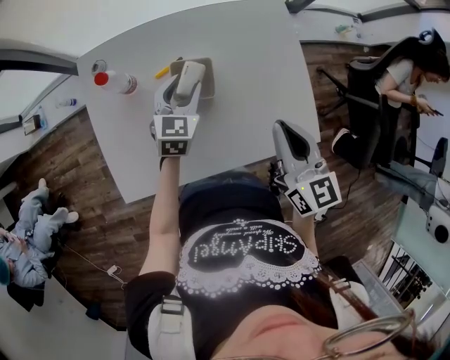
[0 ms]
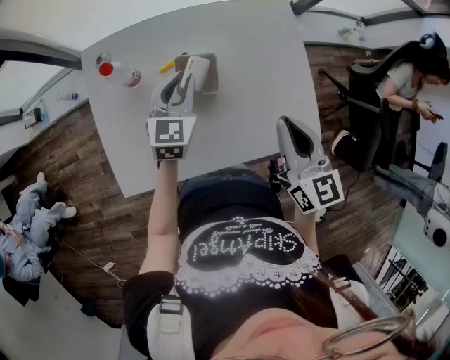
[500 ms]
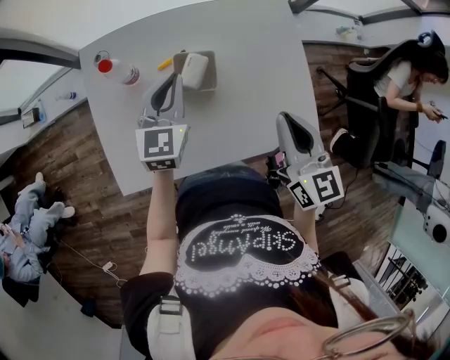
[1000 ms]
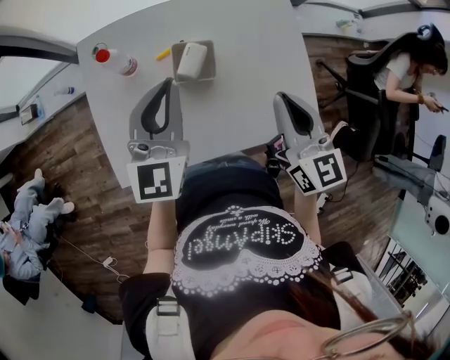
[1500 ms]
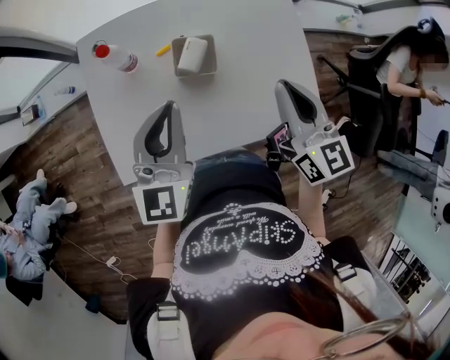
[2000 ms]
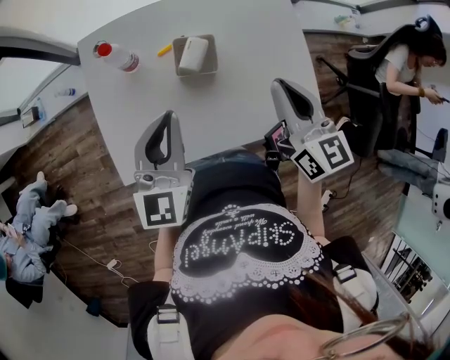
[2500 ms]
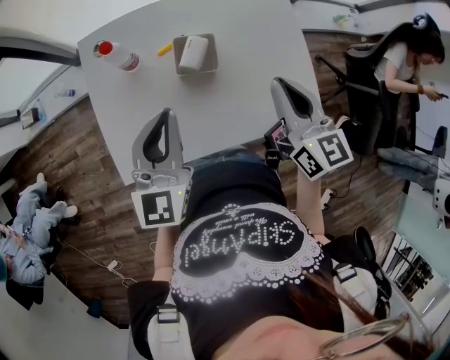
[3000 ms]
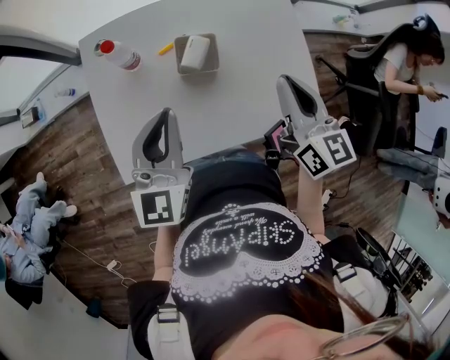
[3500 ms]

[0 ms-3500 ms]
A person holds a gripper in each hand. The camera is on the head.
0 ms to 2000 ms: The left gripper shifts about 20 cm upward and backward, turns by some 20 degrees, and closes up.
2000 ms to 3500 ms: There are only small adjustments of the grippers.

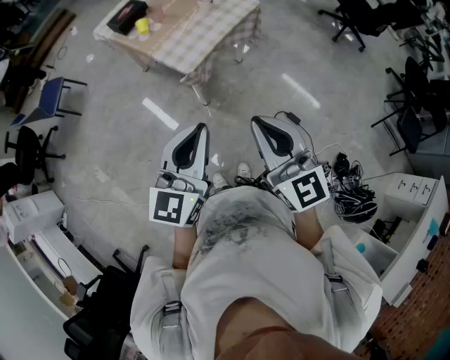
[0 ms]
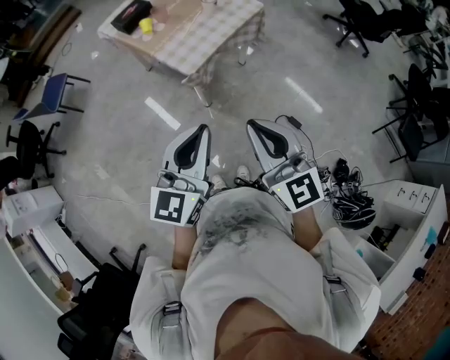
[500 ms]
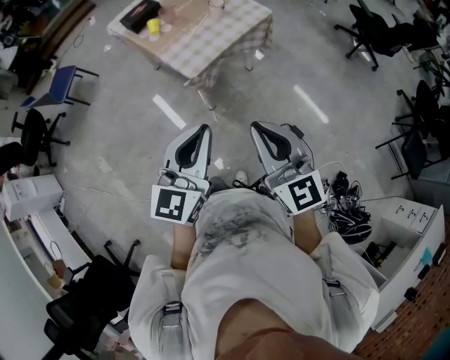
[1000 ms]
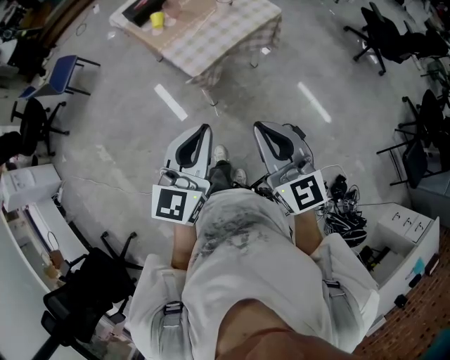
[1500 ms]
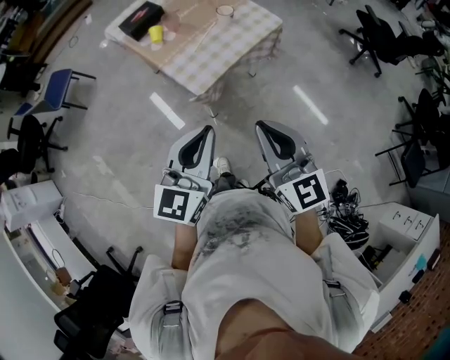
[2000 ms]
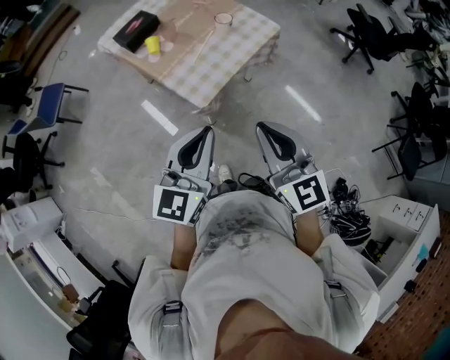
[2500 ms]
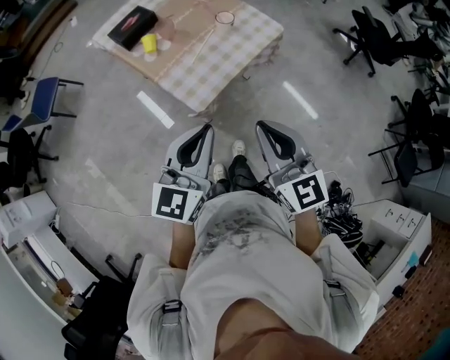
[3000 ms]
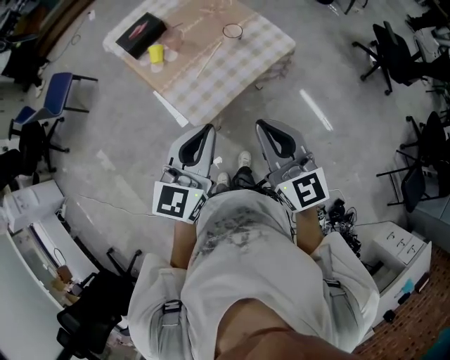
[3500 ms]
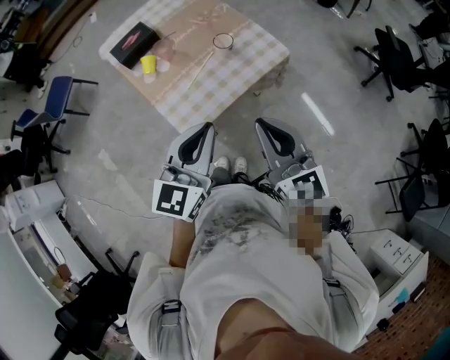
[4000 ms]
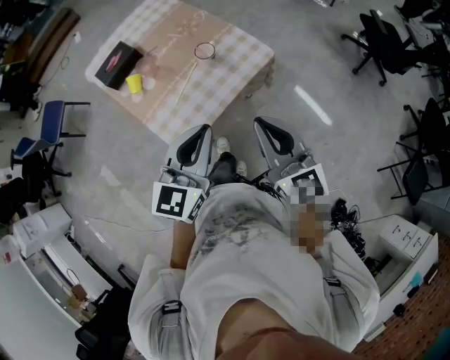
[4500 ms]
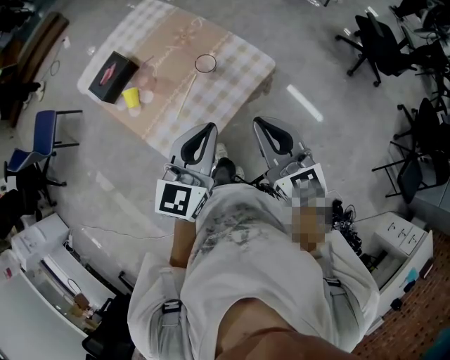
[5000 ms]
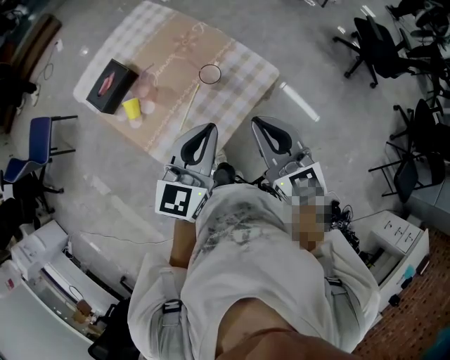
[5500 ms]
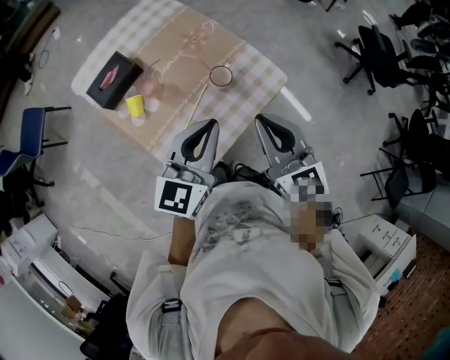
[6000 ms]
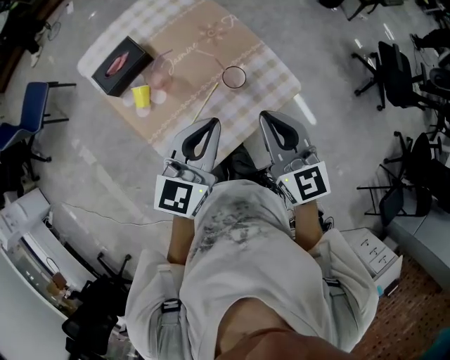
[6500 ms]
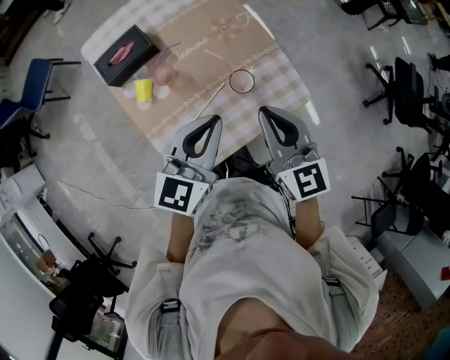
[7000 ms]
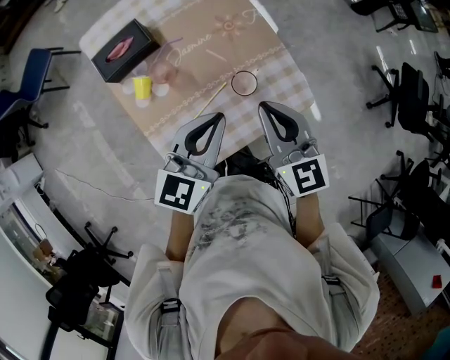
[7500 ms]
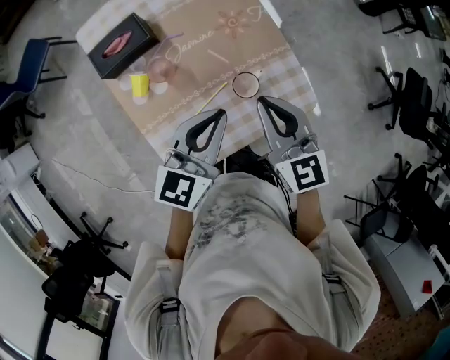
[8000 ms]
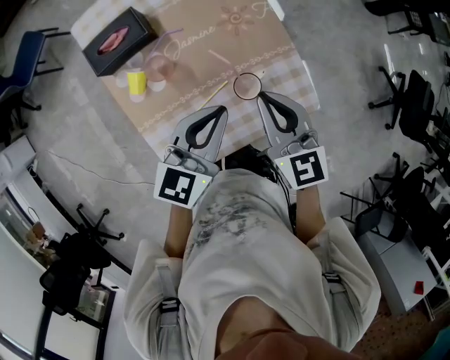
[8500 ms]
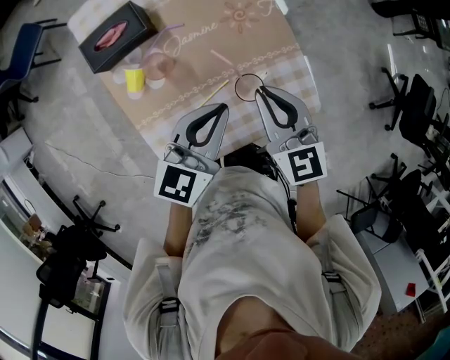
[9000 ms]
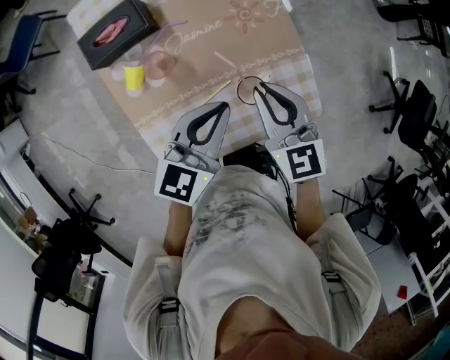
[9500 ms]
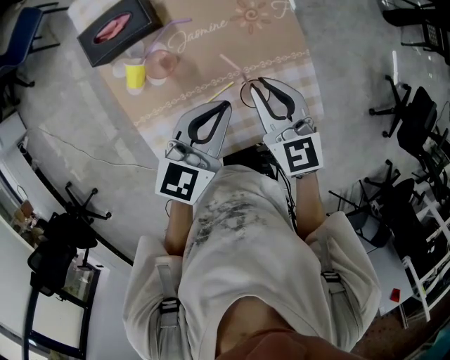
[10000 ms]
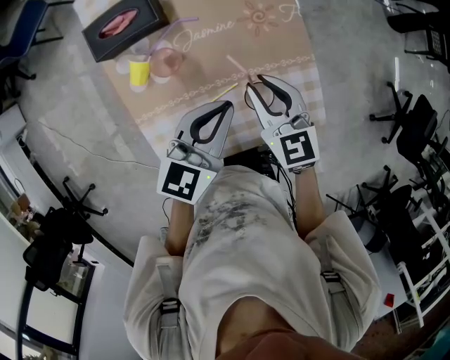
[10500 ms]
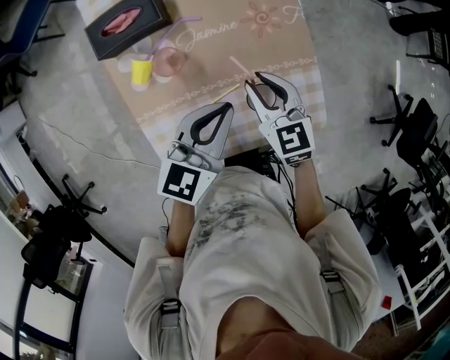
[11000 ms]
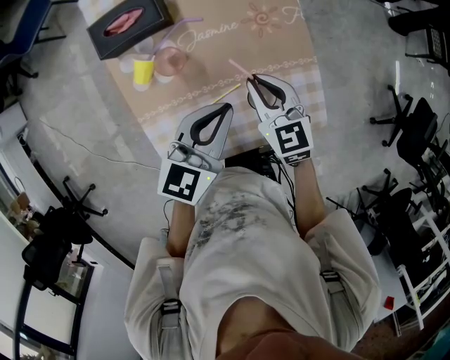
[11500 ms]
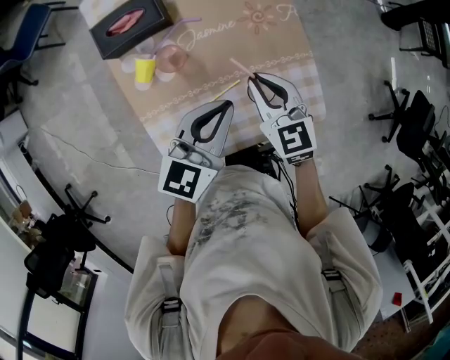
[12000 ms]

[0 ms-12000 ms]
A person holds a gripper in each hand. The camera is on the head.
0 ms to 2000 ms: Both grippers travel together forward, roughly 15 cm.
2000 ms to 4000 ms: Both grippers move forward, approximately 25 cm.
4000 ms to 6000 ms: Both grippers travel together forward, approximately 20 cm.
6000 ms to 8000 ms: Both grippers move forward and downward, approximately 15 cm.
8000 ms to 10000 ms: Both grippers travel together downward and forward, about 10 cm.
10000 ms to 12000 ms: The grippers stay close to where they were, moving slightly.

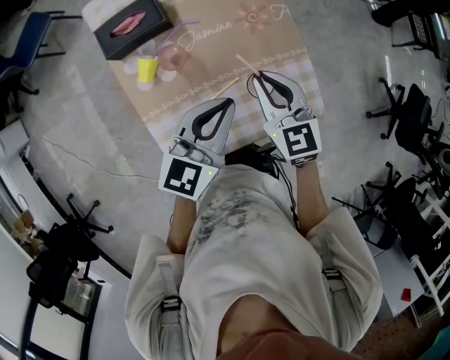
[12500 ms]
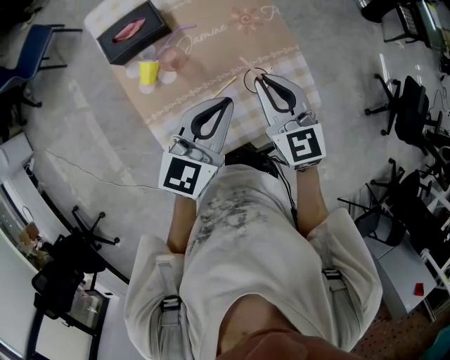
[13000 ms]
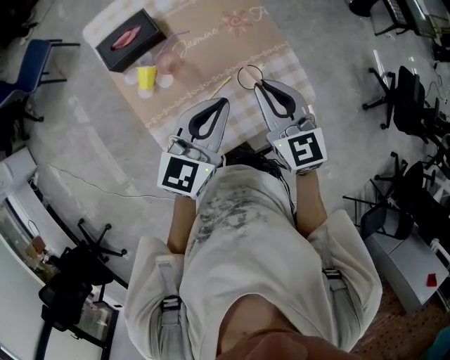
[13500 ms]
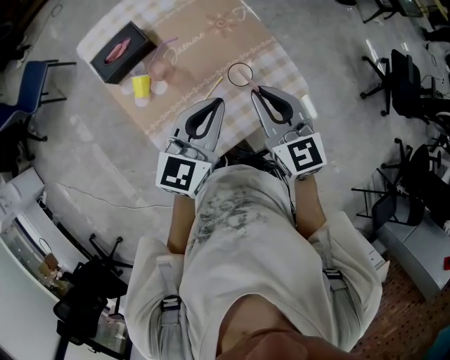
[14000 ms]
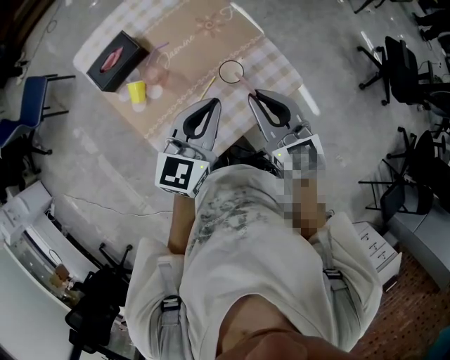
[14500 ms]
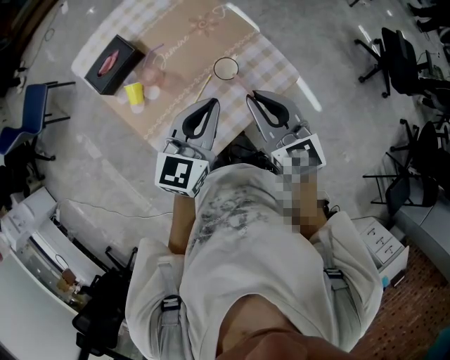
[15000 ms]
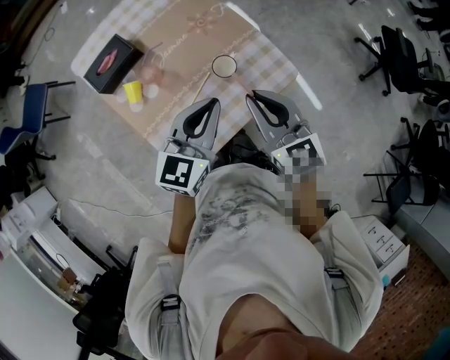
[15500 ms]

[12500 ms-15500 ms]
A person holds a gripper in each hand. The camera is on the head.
12500 ms to 14000 ms: The right gripper heads backward and upward, covering some 15 cm, while the left gripper is displaced backward by approximately 5 cm.
14000 ms to 15500 ms: The right gripper heads backward, covering some 5 cm.

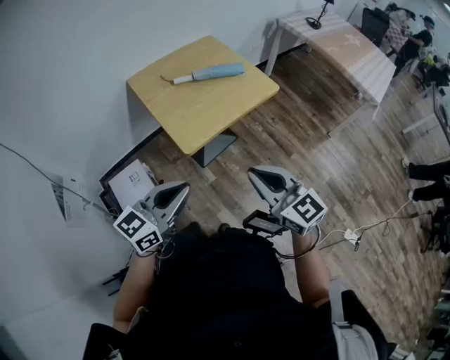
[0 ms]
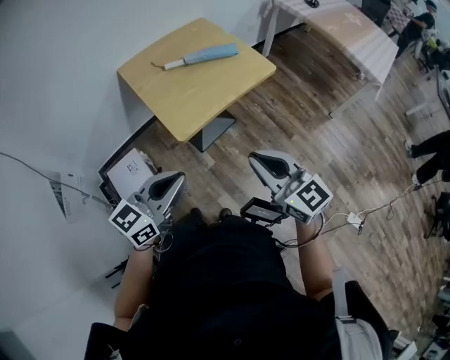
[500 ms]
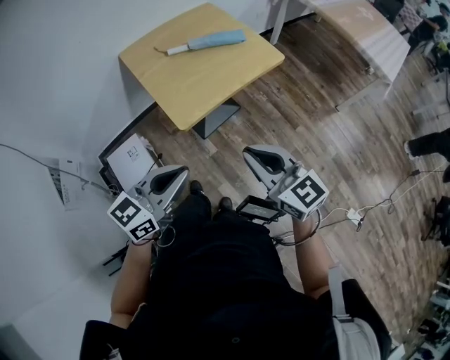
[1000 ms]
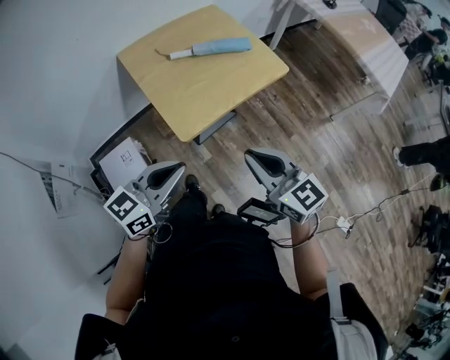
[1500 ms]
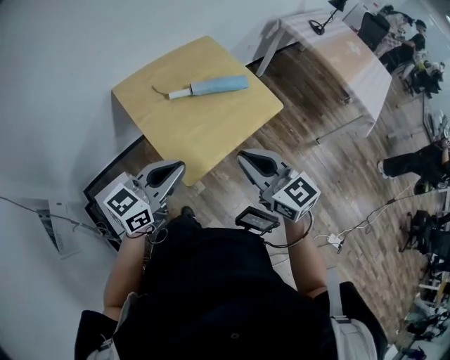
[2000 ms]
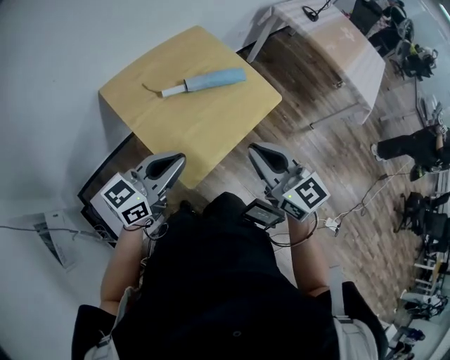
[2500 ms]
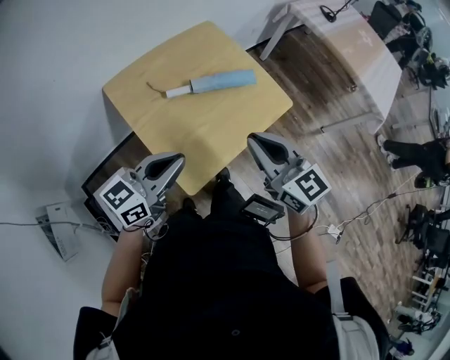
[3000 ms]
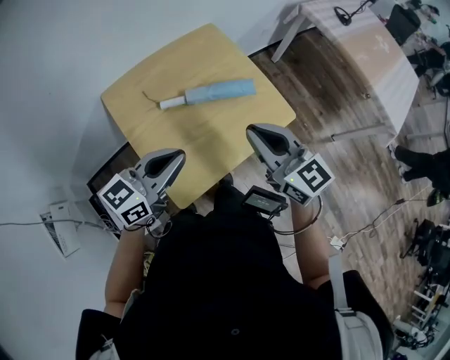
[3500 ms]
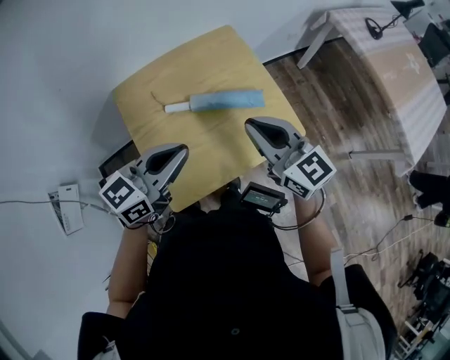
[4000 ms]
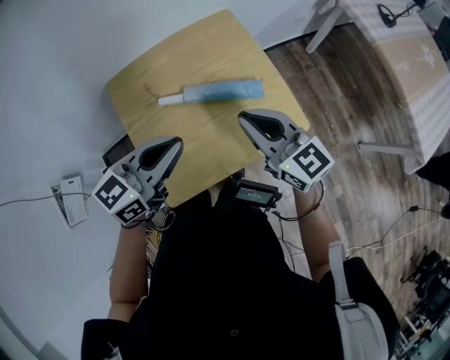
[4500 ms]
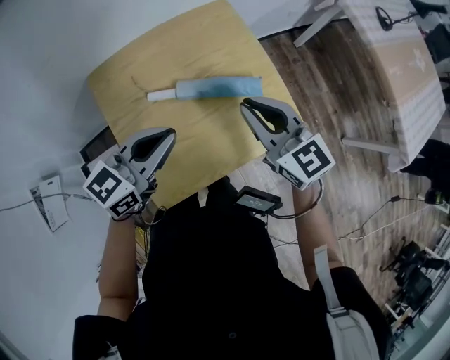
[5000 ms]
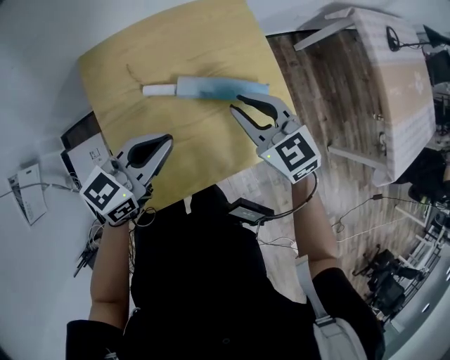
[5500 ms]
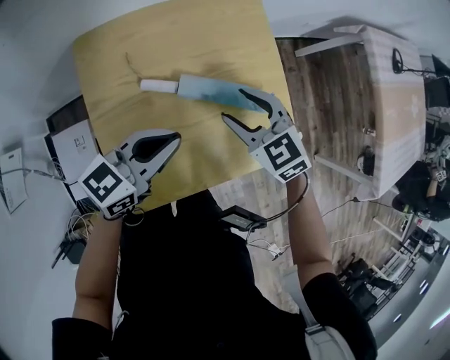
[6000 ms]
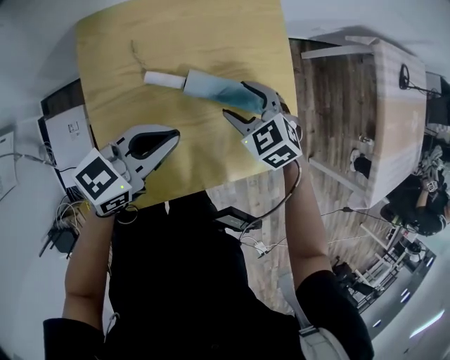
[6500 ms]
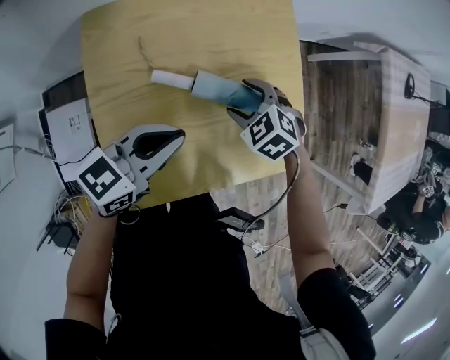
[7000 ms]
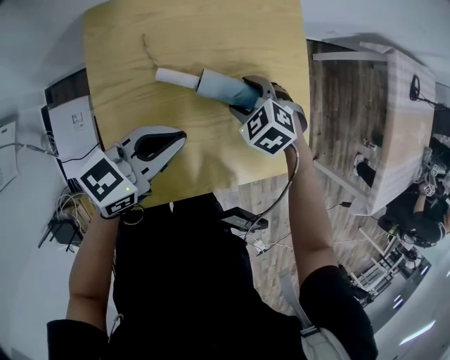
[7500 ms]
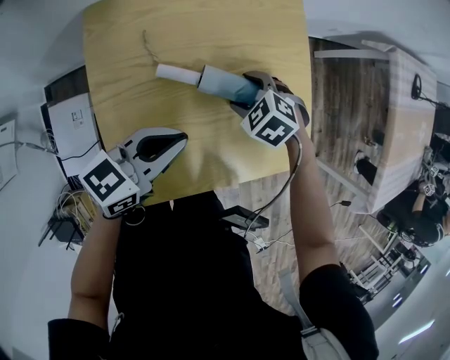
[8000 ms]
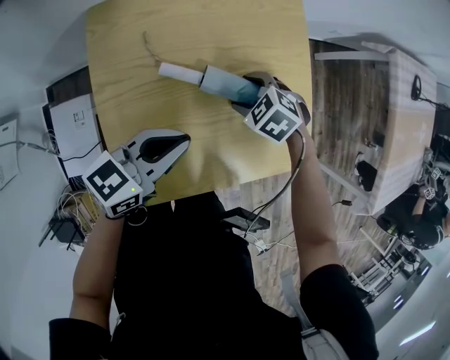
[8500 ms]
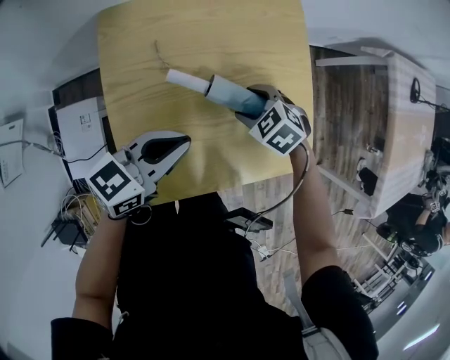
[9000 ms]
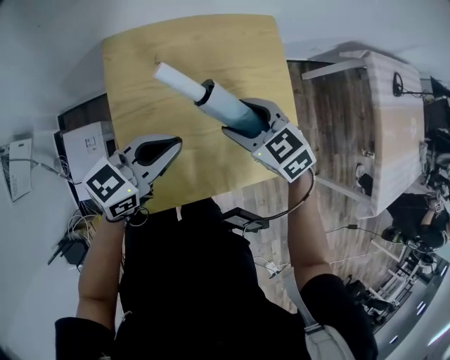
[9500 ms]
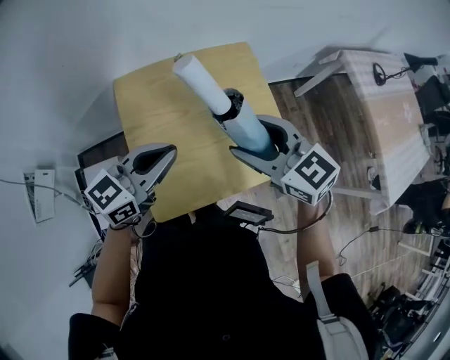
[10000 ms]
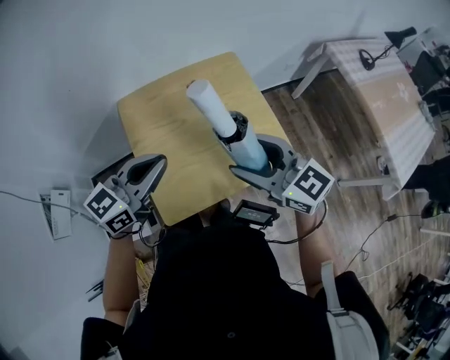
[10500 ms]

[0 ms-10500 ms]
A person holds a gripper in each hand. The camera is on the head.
0 ms to 2000 ms: Both grippers move forward, approximately 20 cm.
2000 ms to 4000 ms: The right gripper moves forward, about 25 cm. Meanwhile the left gripper travels forward and to the right by approximately 20 cm.
4000 ms to 6500 ms: The right gripper heads downward and forward, covering some 25 cm, tips its fingers downward by roughly 50 degrees, and opens up. The left gripper shifts about 15 cm downward and forward.
6500 ms to 8500 ms: The right gripper shifts approximately 5 cm downward.
8500 ms to 10500 ms: The left gripper moves upward, about 20 cm, and swivels approximately 20 degrees. The right gripper goes approximately 40 cm upward and backward, and tilts its fingers roughly 60 degrees upward.
